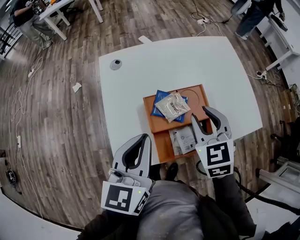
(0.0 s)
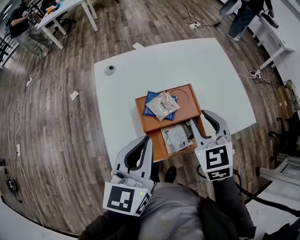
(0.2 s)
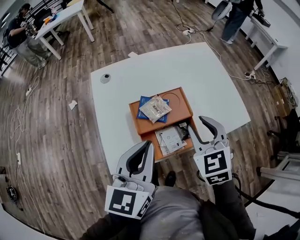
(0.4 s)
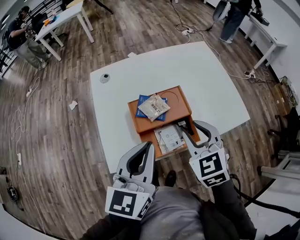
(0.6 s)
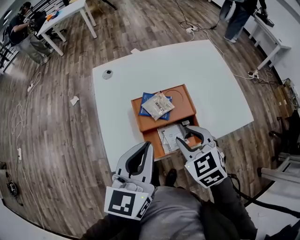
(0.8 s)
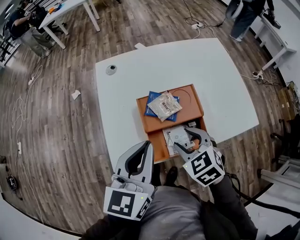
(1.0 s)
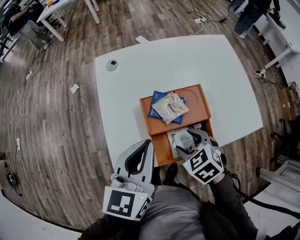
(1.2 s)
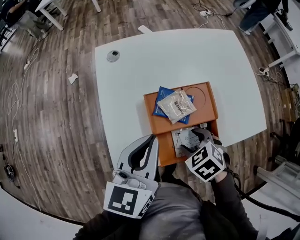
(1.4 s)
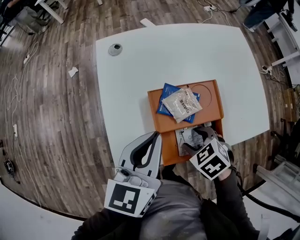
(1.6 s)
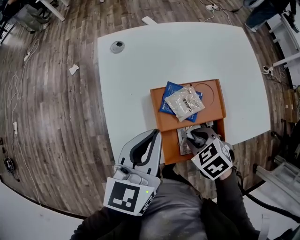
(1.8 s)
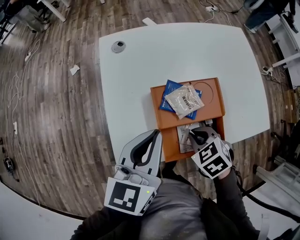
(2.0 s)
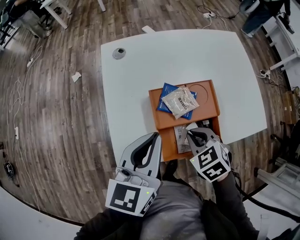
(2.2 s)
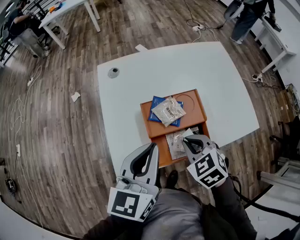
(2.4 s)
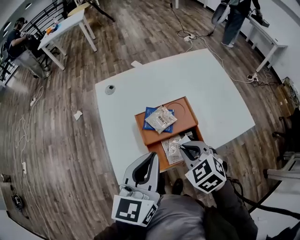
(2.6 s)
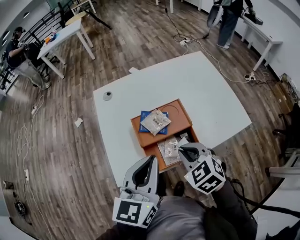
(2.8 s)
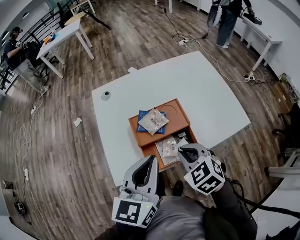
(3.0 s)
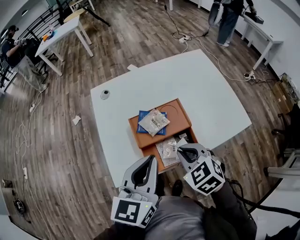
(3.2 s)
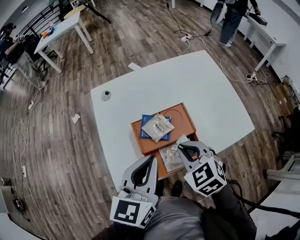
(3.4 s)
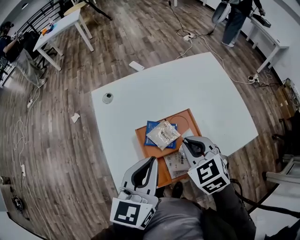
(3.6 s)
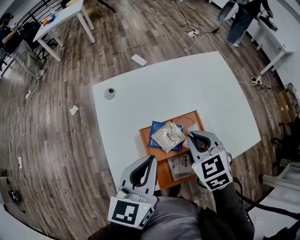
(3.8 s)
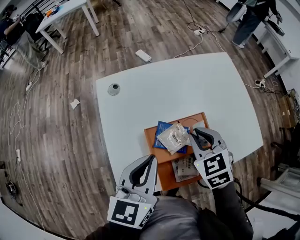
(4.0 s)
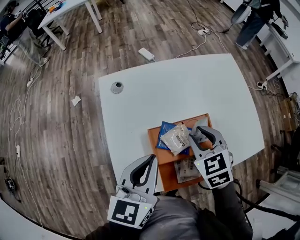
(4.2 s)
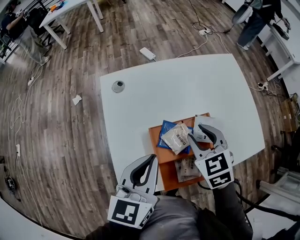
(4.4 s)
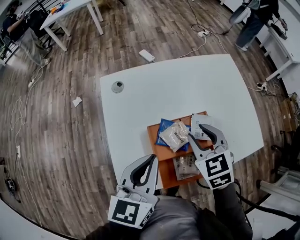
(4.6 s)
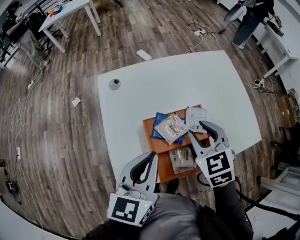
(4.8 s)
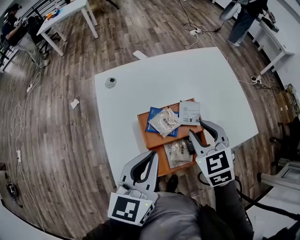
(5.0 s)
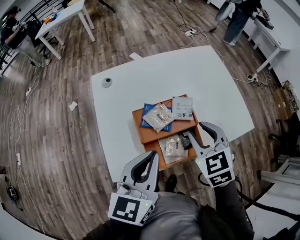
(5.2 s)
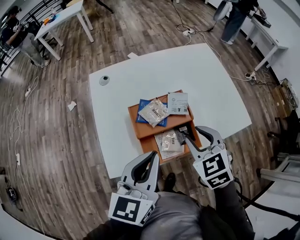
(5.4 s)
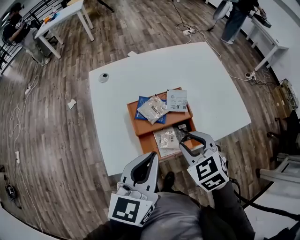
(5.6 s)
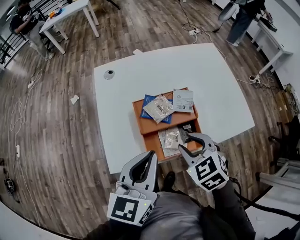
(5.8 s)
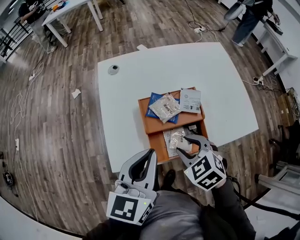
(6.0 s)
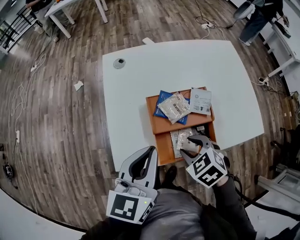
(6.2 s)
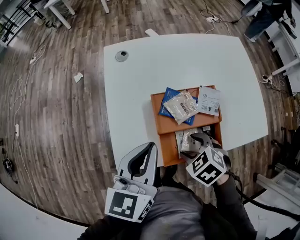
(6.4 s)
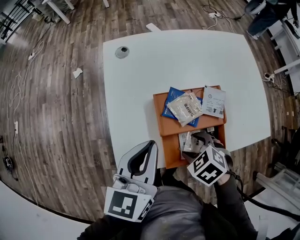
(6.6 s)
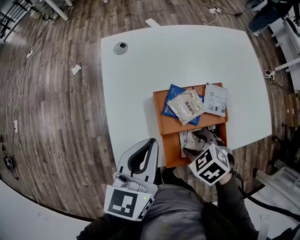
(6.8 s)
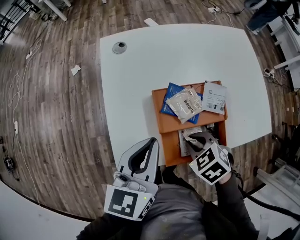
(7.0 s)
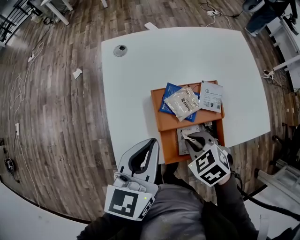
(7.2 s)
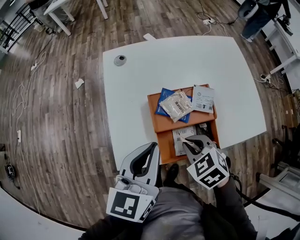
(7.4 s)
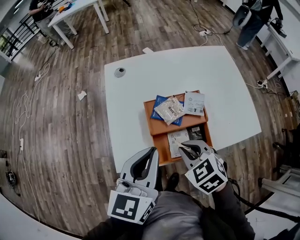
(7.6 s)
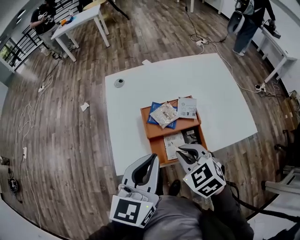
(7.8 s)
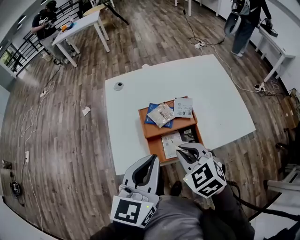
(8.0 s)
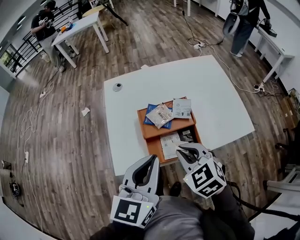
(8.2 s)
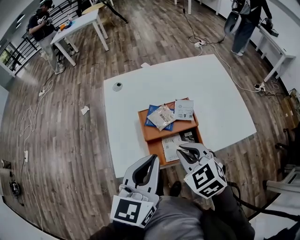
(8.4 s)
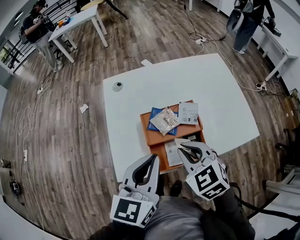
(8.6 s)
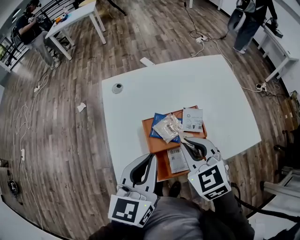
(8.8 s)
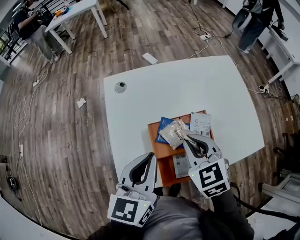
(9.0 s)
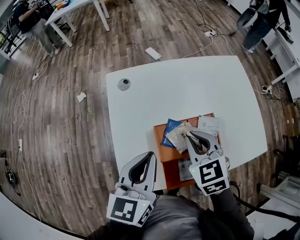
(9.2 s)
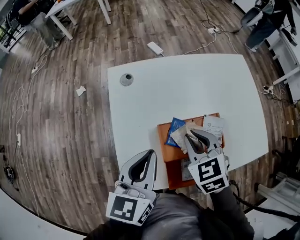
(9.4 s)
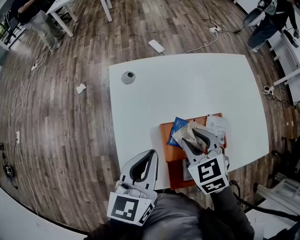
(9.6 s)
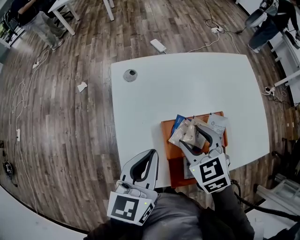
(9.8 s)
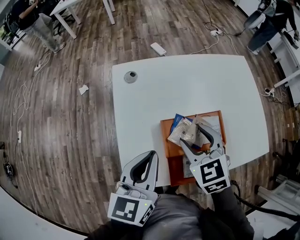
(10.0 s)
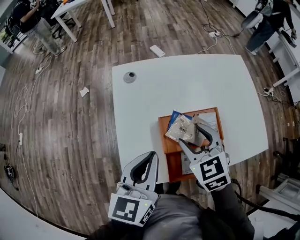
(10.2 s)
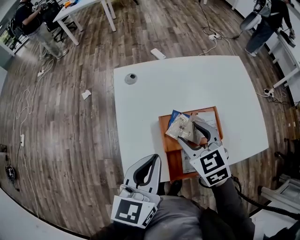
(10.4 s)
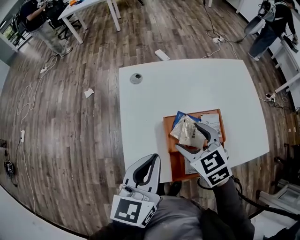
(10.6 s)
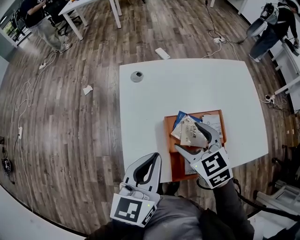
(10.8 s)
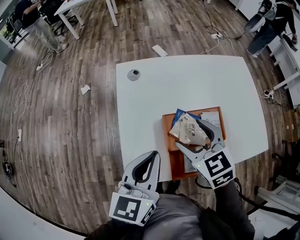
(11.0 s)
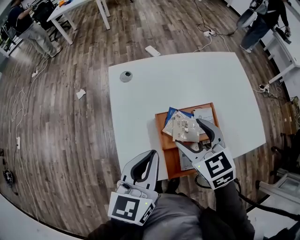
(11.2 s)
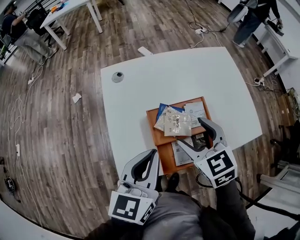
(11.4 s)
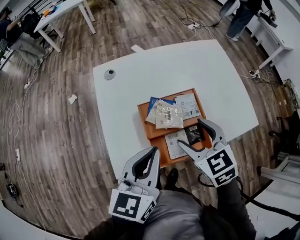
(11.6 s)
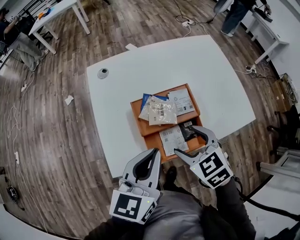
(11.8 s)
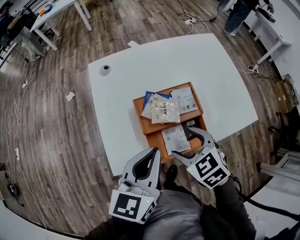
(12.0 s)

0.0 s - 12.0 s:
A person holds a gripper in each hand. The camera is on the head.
0.0 s - 1.6 s: The left gripper travels backward and back again, some 5 cm each way. Meanwhile the right gripper moves downward and backward, approximately 15 cm, and angles its fingers downward, by approximately 40 degrees.
1.6 s - 3.0 s: The right gripper goes about 10 cm upward, changes its angle by some 30 degrees, and closes, while the left gripper heads backward, upward and to the right, covering approximately 15 cm.
3.0 s - 4.4 s: The left gripper is displaced forward, to the left and downward by about 15 cm. The right gripper moves forward, approximately 15 cm, and opens.
4.4 s - 6.0 s: The right gripper is displaced backward by approximately 15 cm, and changes its angle by about 20 degrees, while the left gripper heads backward, covering about 10 cm.
6.0 s - 7.6 s: The right gripper reaches roughly 10 cm downward, then returns, and closes up.
7.6 s - 9.0 s: Both grippers travel together forward, about 10 cm.
9.0 s - 10.4 s: The right gripper opens up.
10.4 s - 12.0 s: The right gripper is displaced backward by roughly 10 cm, while the left gripper moves to the right, some 5 cm.

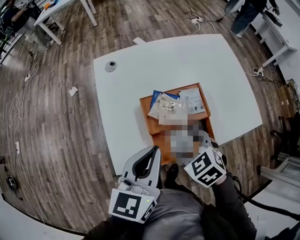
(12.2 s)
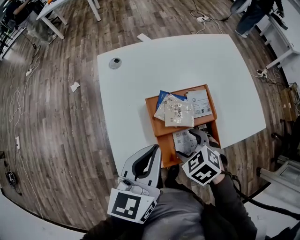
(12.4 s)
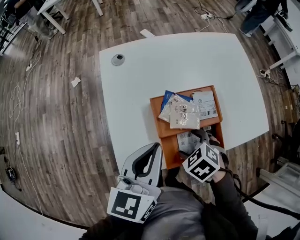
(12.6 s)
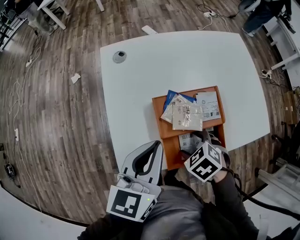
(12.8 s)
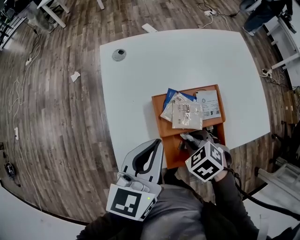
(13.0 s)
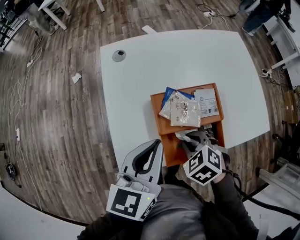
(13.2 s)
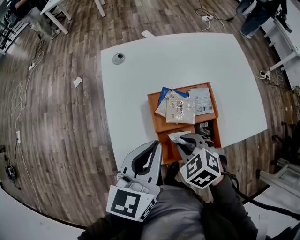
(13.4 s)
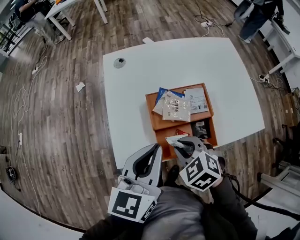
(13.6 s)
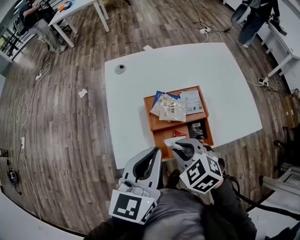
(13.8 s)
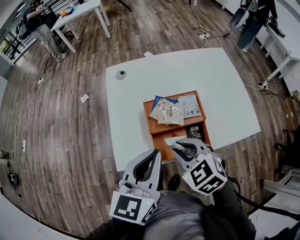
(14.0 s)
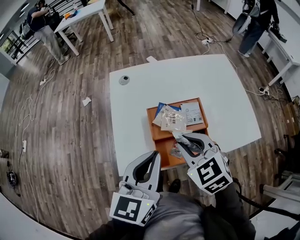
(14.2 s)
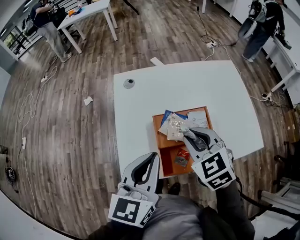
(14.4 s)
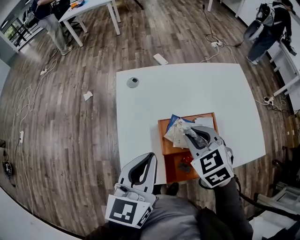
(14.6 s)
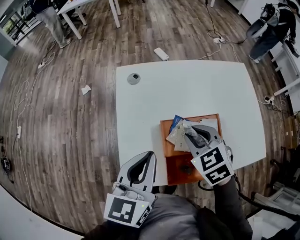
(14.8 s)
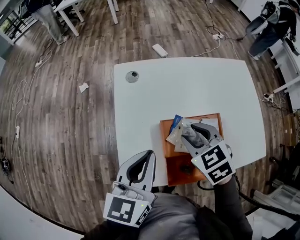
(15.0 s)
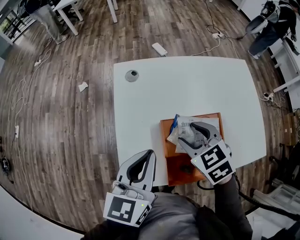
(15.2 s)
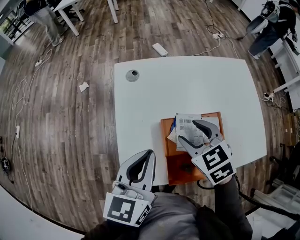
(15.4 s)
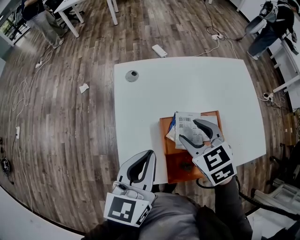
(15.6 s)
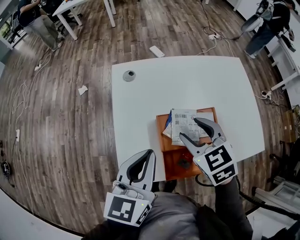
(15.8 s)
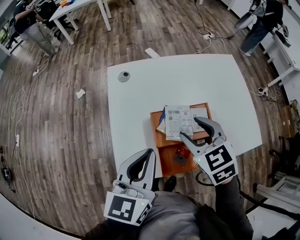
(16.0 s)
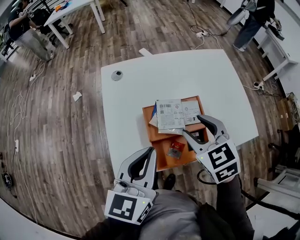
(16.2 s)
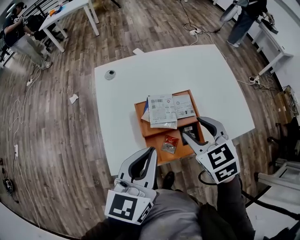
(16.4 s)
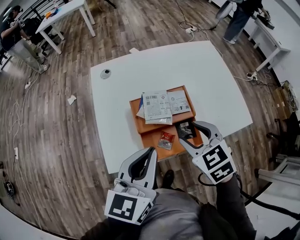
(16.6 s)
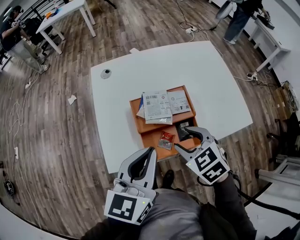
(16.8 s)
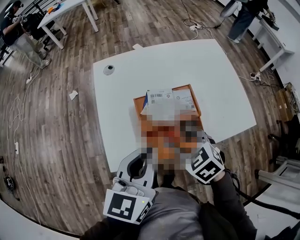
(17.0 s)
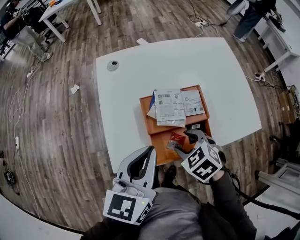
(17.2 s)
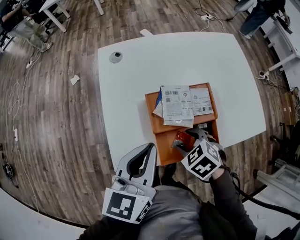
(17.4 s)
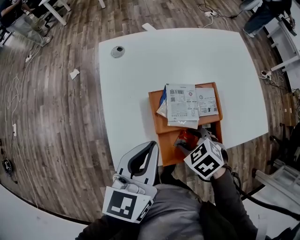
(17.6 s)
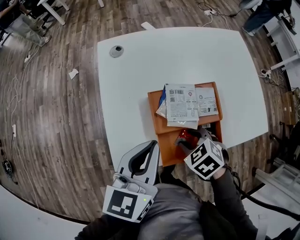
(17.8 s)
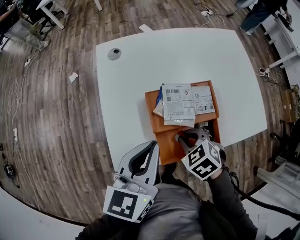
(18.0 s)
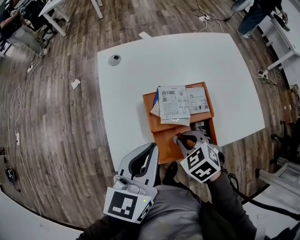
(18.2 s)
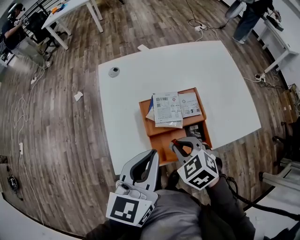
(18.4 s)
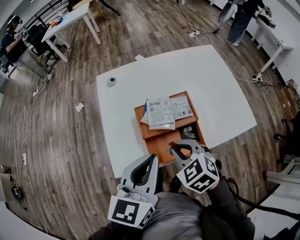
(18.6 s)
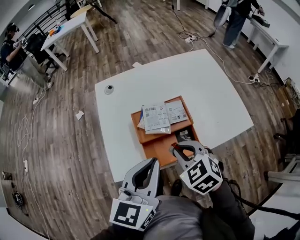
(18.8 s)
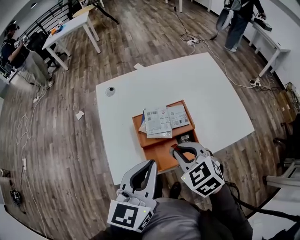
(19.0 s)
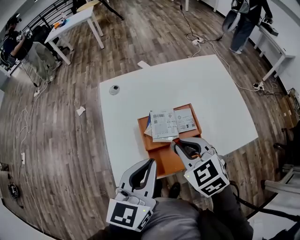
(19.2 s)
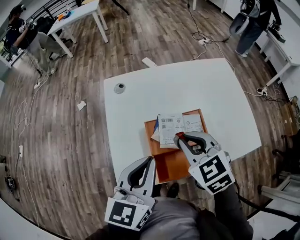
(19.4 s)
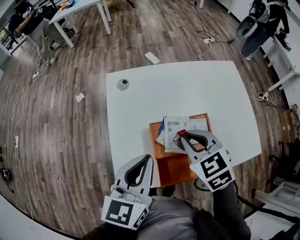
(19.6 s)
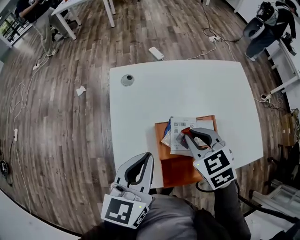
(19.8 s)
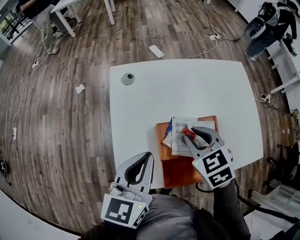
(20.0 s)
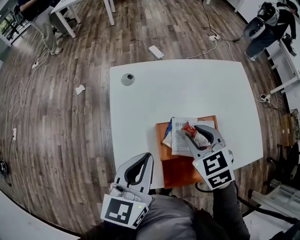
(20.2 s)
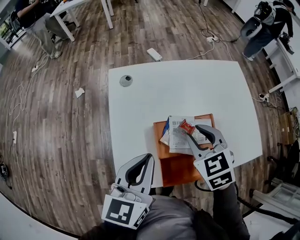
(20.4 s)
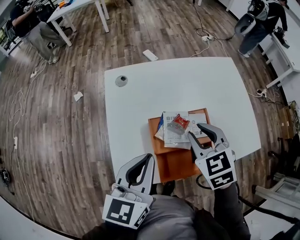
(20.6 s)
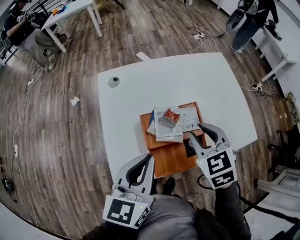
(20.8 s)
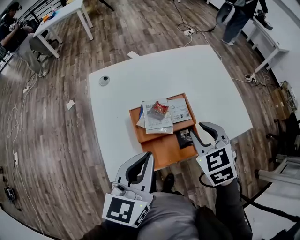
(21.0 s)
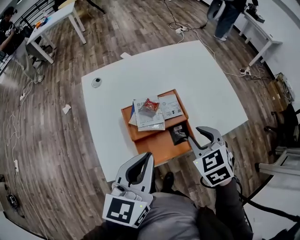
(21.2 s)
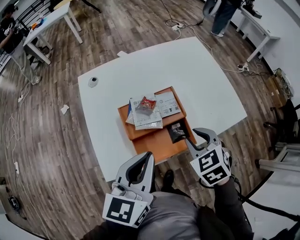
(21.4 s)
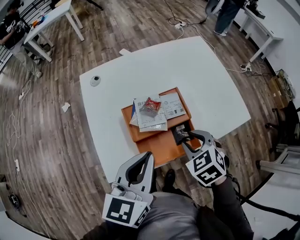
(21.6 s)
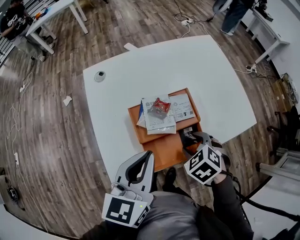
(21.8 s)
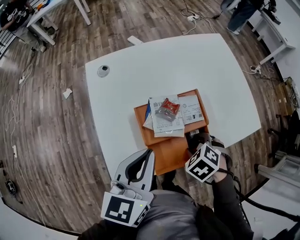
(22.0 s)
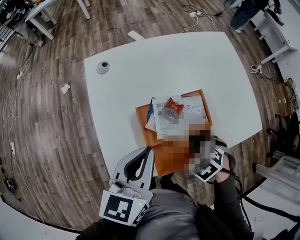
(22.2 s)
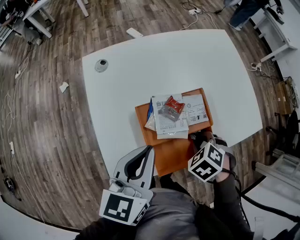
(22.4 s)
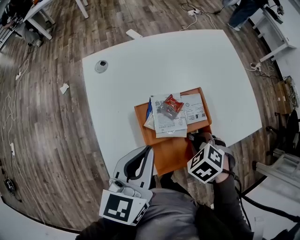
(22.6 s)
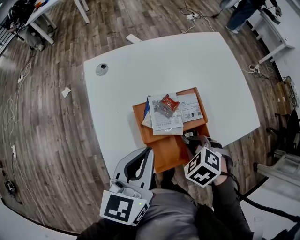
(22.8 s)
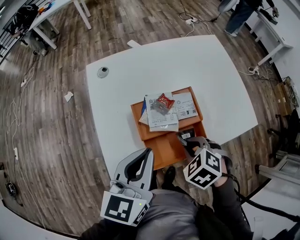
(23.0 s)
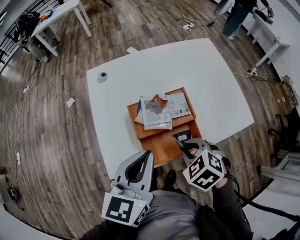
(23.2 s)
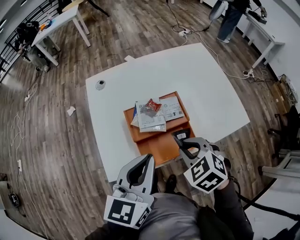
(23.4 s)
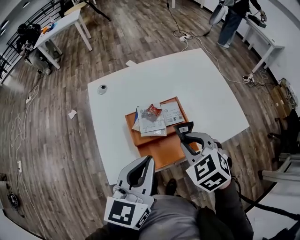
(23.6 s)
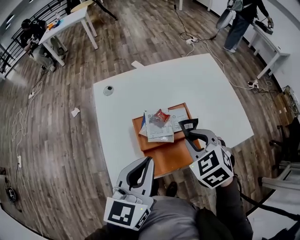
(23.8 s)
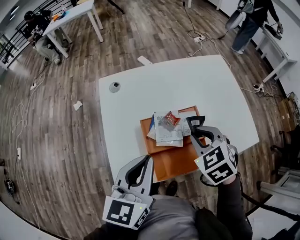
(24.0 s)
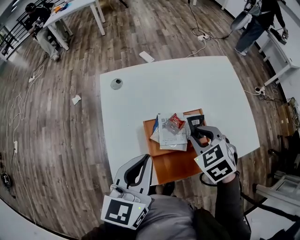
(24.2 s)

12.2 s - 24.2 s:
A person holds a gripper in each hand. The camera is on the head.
12.2 s - 13.8 s: The right gripper shifts by approximately 5 cm, and closes its fingers.
13.8 s - 15.2 s: The left gripper goes approximately 10 cm forward and to the left, while the right gripper shifts about 15 cm forward, and opens up.
15.2 s - 16.6 s: The grippers both shift backward and to the right by some 15 cm.
16.6 s - 18.2 s: The right gripper goes about 10 cm downward and to the left, and closes its fingers.
18.2 s - 19.8 s: The right gripper is displaced forward and upward by about 15 cm, while the left gripper goes about 5 cm forward.
19.8 s - 21.2 s: The grippers both shift to the right and backward by roughly 15 cm.
21.2 s - 22.6 s: The left gripper ends up about 10 cm from where it was; the right gripper goes some 10 cm downward, and rotates roughly 30 degrees.
22.6 s - 24.2 s: The right gripper heads upward, covering about 10 cm, and turns by some 20 degrees.
